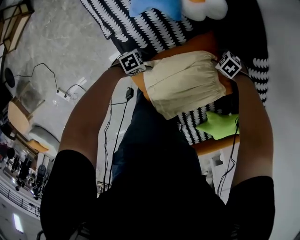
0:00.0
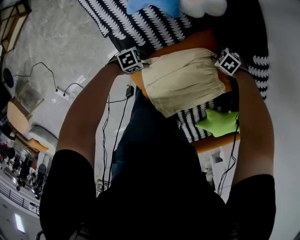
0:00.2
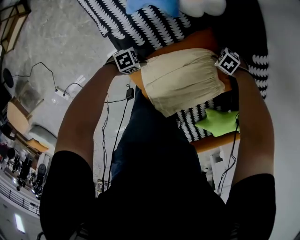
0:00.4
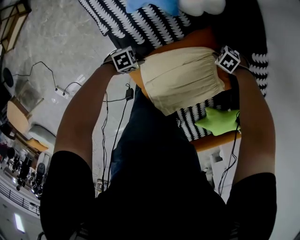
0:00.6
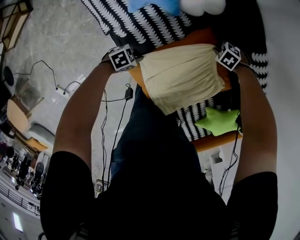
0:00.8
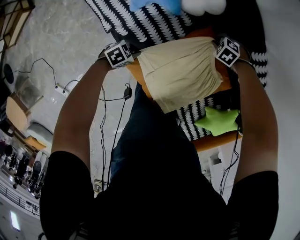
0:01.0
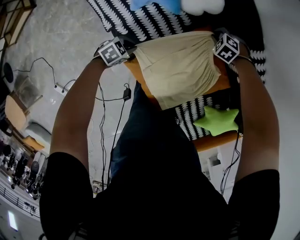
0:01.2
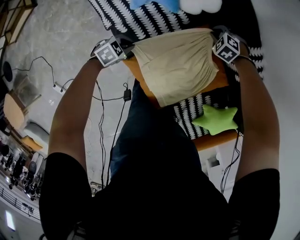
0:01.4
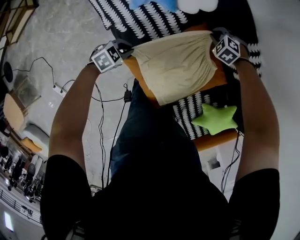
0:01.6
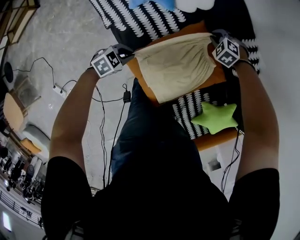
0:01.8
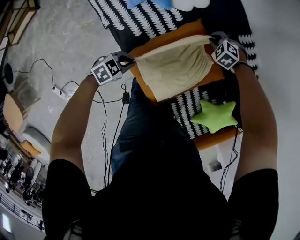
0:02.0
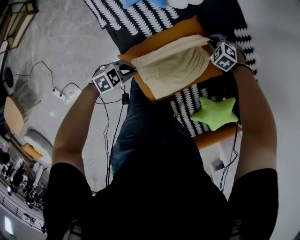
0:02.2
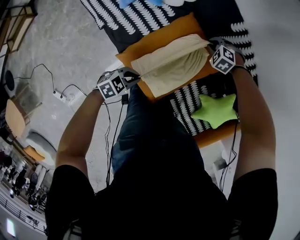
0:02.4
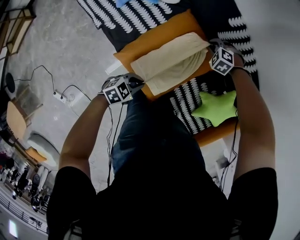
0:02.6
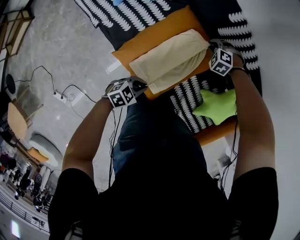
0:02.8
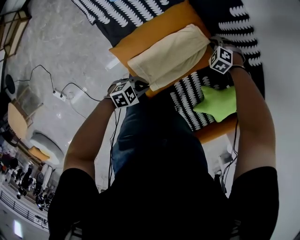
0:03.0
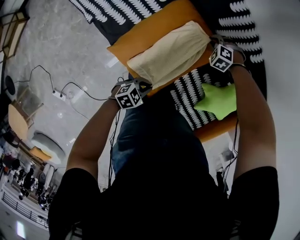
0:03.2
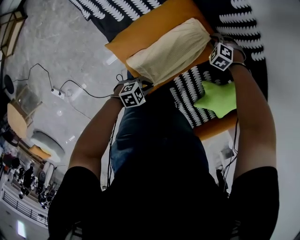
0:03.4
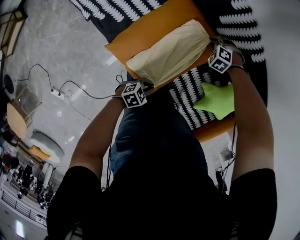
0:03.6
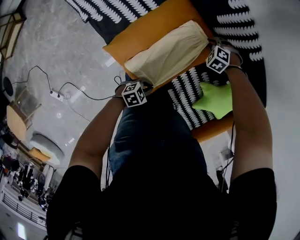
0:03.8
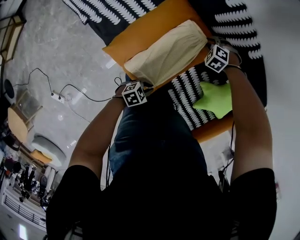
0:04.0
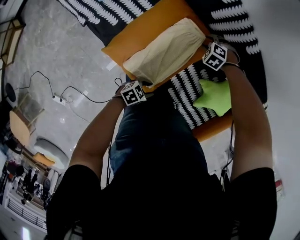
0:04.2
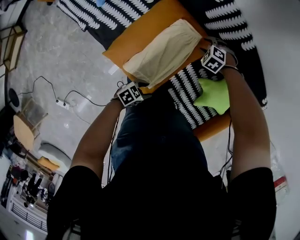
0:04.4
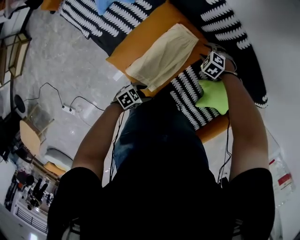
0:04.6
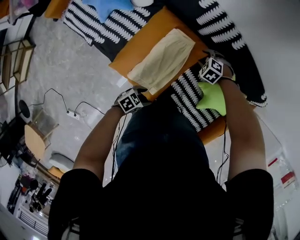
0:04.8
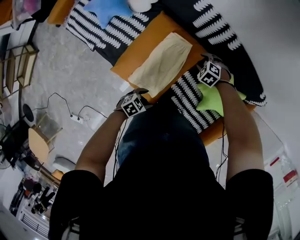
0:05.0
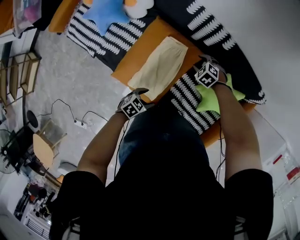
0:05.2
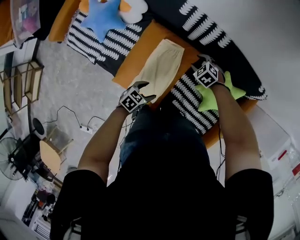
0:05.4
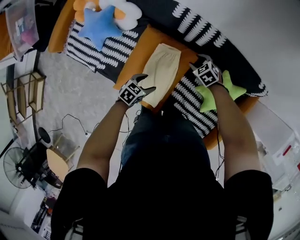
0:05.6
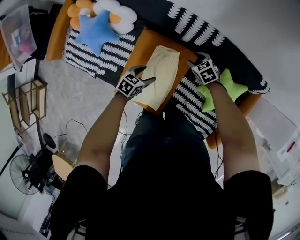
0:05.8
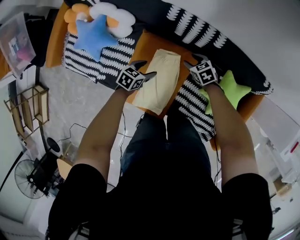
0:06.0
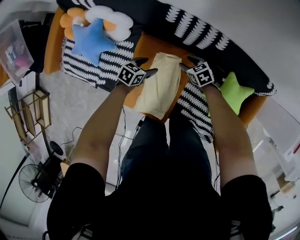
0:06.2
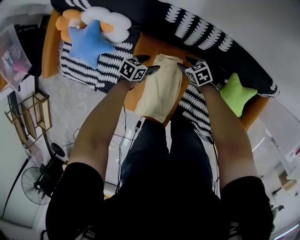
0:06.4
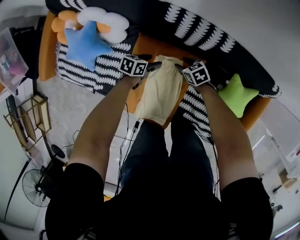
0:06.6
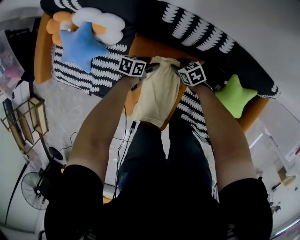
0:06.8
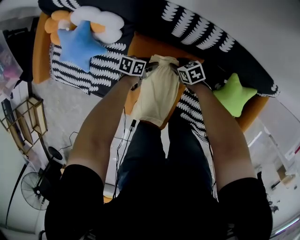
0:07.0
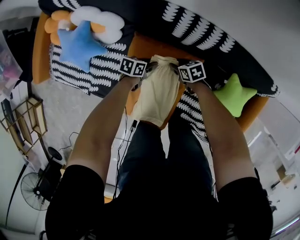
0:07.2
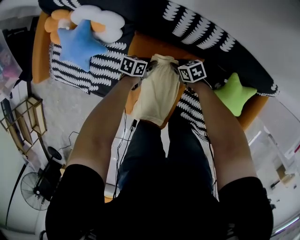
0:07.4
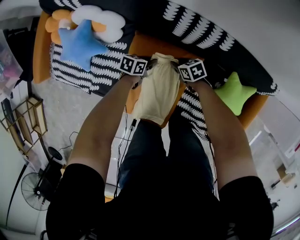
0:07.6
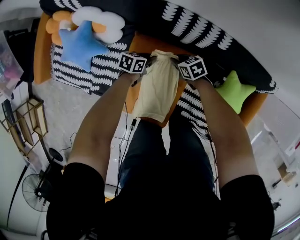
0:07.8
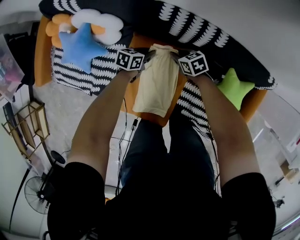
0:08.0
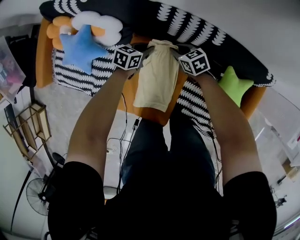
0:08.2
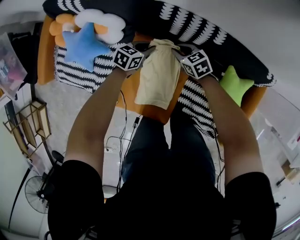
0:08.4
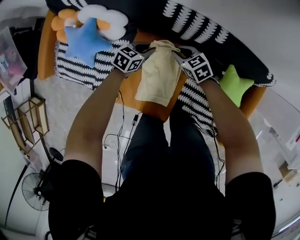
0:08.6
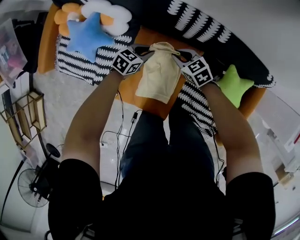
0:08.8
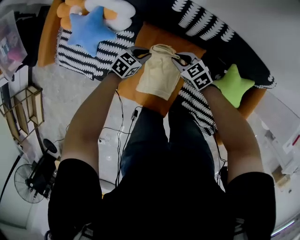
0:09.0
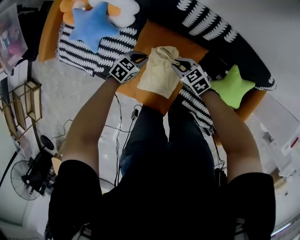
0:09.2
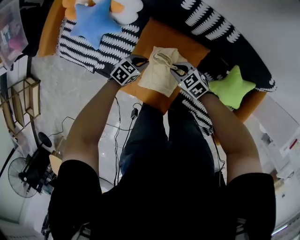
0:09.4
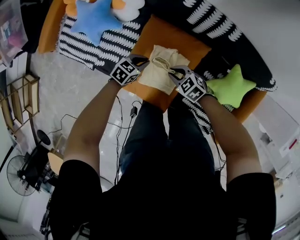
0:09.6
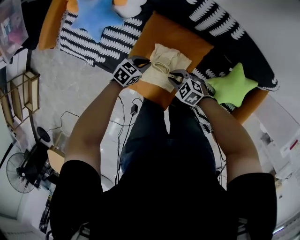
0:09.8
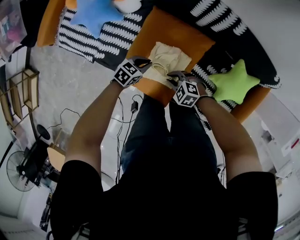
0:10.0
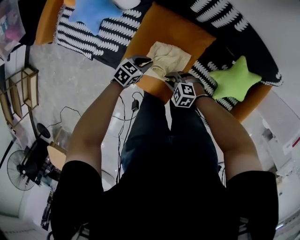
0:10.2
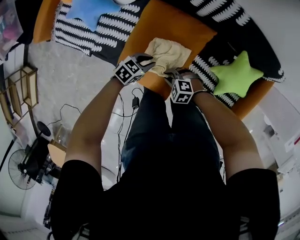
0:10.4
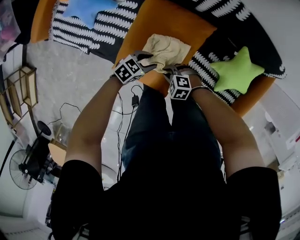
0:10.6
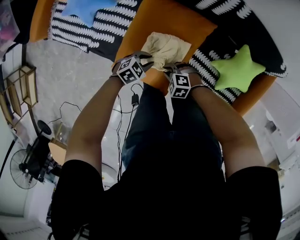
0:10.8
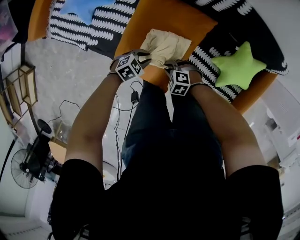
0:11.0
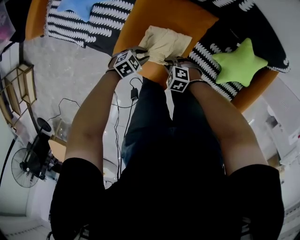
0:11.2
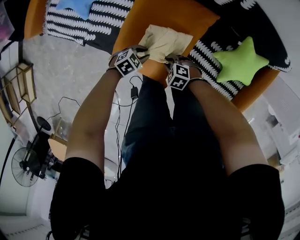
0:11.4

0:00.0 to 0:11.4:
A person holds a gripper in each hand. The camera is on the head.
0:00.0 to 0:01.4: The right gripper shifts by roughly 15 cm, turns by approximately 30 degrees, and closes its fingers. Meanwhile the left gripper changes place by roughly 10 cm, and closes.
0:01.4 to 0:02.8: The left gripper moves some 25 cm. The right gripper changes place by roughly 15 cm.
0:02.8 to 0:04.2: The left gripper changes place by approximately 15 cm, and opens its fingers; the right gripper changes place by roughly 10 cm, and opens up.
0:04.2 to 0:05.6: The left gripper ends up approximately 25 cm from where it was, and opens up. The right gripper moves upward, some 15 cm, and twists some 50 degrees clockwise, seen from behind.
0:05.6 to 0:07.2: The right gripper goes some 15 cm downward, and changes its angle by approximately 40 degrees. The left gripper ends up approximately 25 cm from where it was, swivels approximately 30 degrees, and closes up.
0:07.2 to 0:08.6: Both grippers travel together upward, some 15 cm. The right gripper changes its angle by approximately 30 degrees, and closes its fingers. Meanwhile the left gripper rotates approximately 30 degrees.
0:08.6 to 0:10.0: The right gripper moves about 25 cm, and rotates roughly 40 degrees. The left gripper shifts by approximately 20 cm.
0:10.0 to 0:11.4: The left gripper ends up some 10 cm from where it was, and changes its angle by about 20 degrees, while the right gripper travels downward by roughly 10 cm.

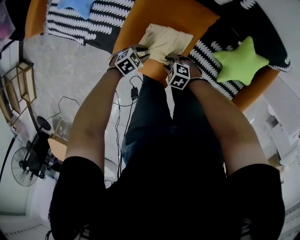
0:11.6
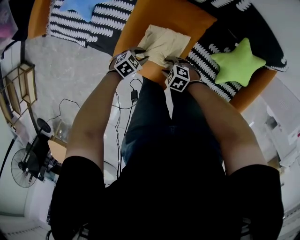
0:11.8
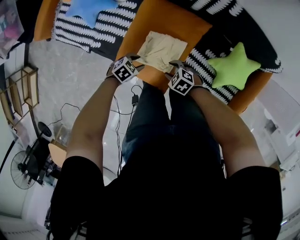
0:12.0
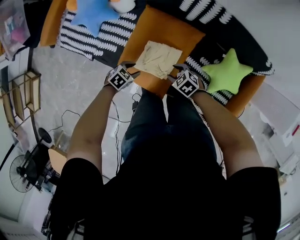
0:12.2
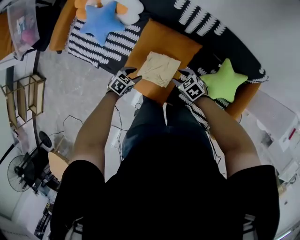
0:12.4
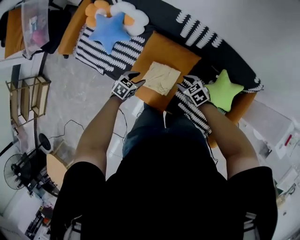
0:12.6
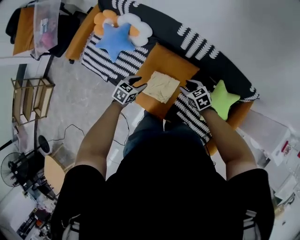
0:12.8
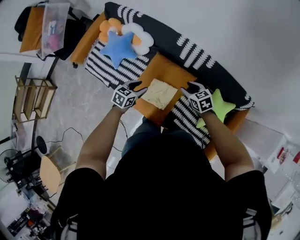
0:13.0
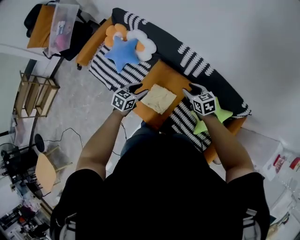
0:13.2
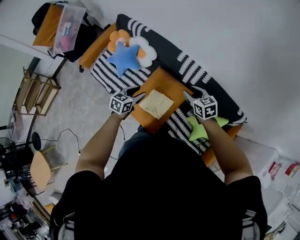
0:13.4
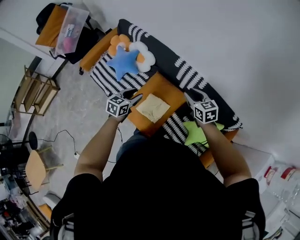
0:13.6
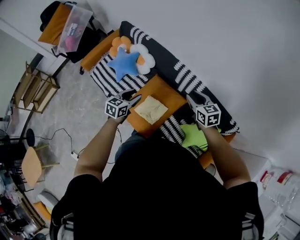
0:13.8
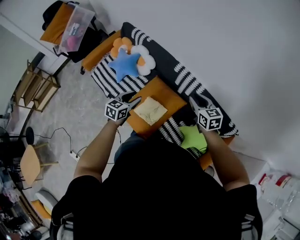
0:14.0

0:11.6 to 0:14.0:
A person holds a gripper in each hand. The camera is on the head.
0:11.6 to 0:12.8: The two grippers go approximately 30 cm upward. The right gripper changes its angle by roughly 40 degrees, while the left gripper swivels approximately 30 degrees.
0:12.8 to 0:14.0: The left gripper shifts about 20 cm upward, and turns by roughly 30 degrees. The right gripper shifts roughly 25 cm upward and to the right, and turns by approximately 20 degrees.

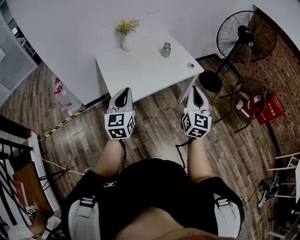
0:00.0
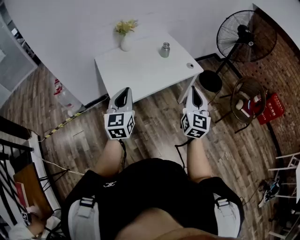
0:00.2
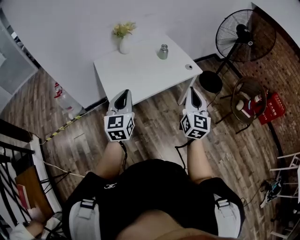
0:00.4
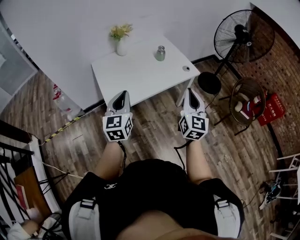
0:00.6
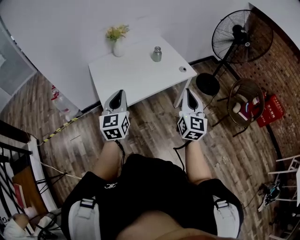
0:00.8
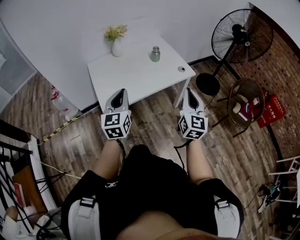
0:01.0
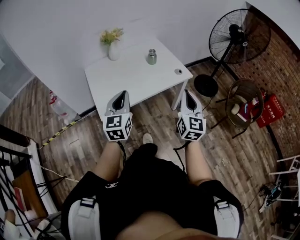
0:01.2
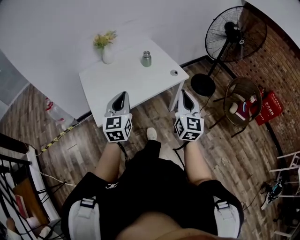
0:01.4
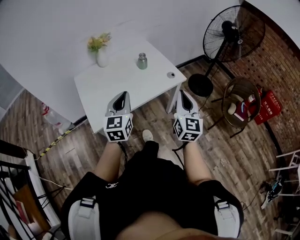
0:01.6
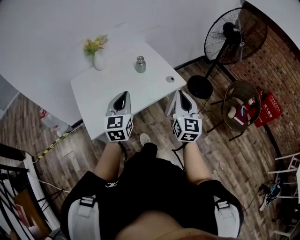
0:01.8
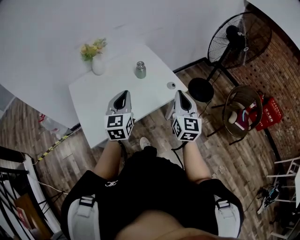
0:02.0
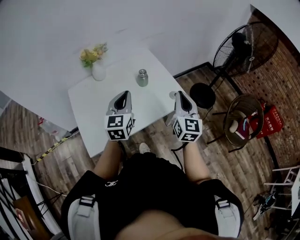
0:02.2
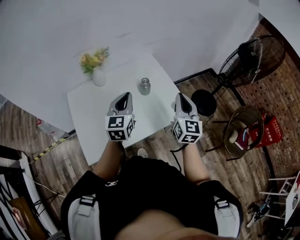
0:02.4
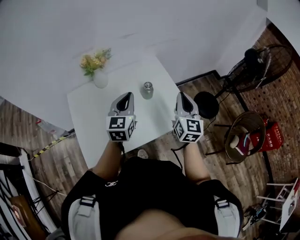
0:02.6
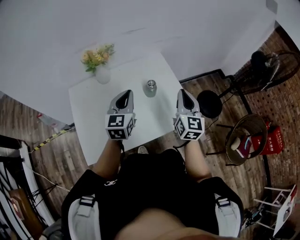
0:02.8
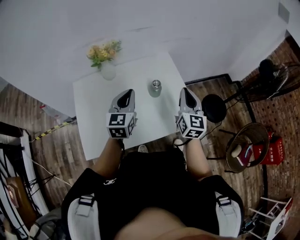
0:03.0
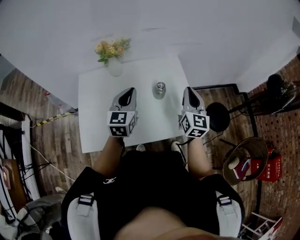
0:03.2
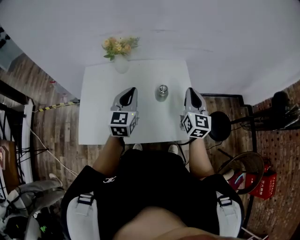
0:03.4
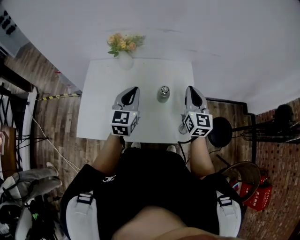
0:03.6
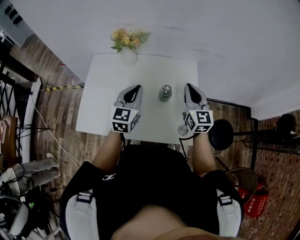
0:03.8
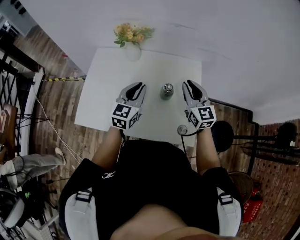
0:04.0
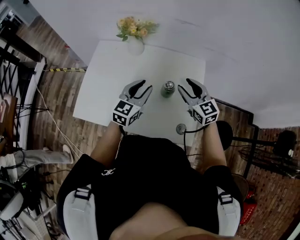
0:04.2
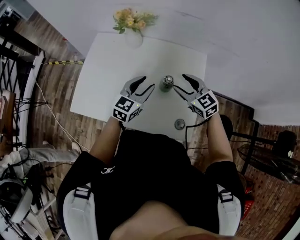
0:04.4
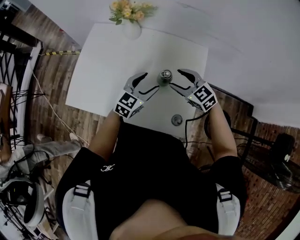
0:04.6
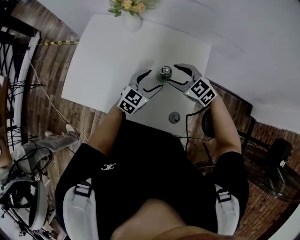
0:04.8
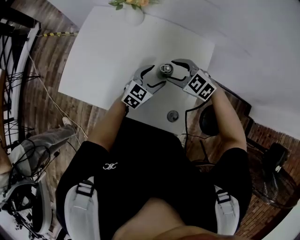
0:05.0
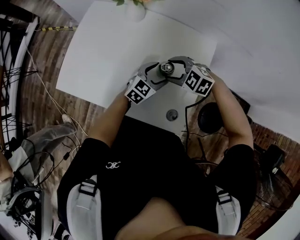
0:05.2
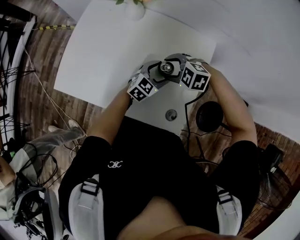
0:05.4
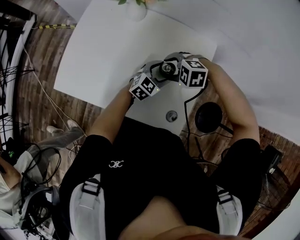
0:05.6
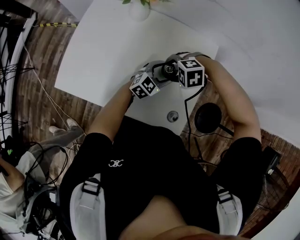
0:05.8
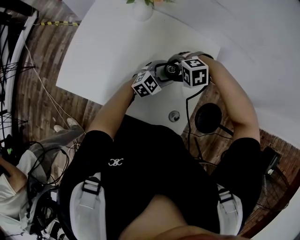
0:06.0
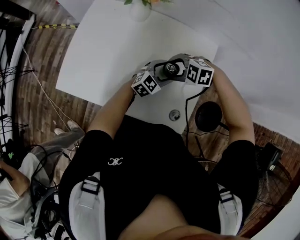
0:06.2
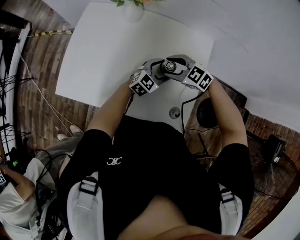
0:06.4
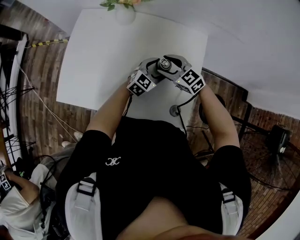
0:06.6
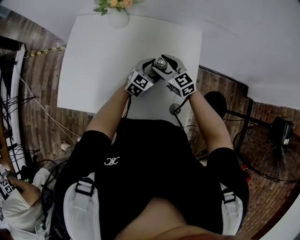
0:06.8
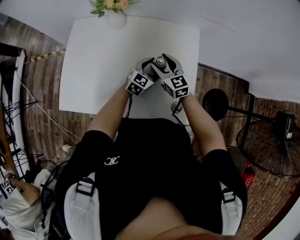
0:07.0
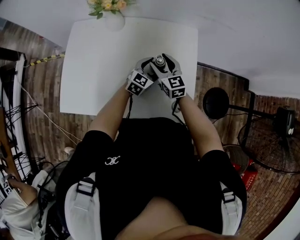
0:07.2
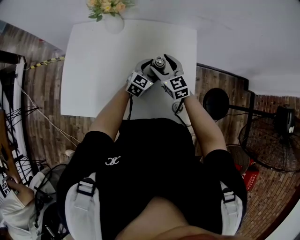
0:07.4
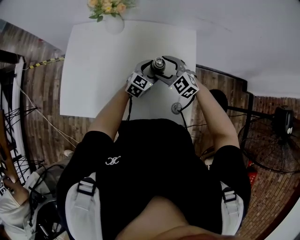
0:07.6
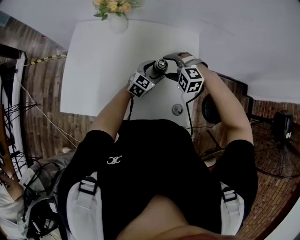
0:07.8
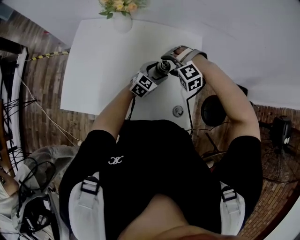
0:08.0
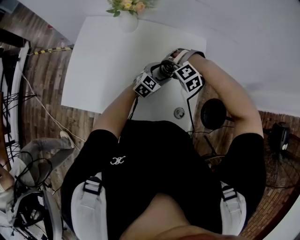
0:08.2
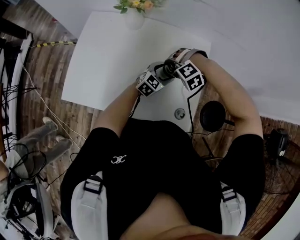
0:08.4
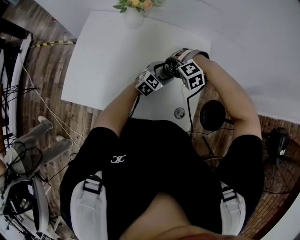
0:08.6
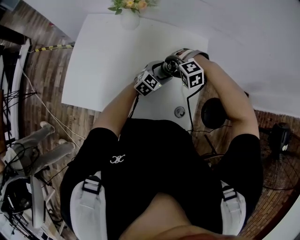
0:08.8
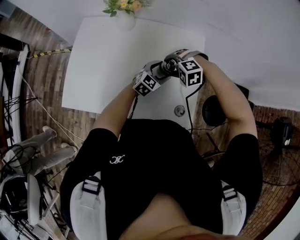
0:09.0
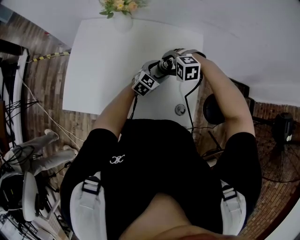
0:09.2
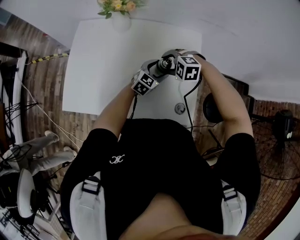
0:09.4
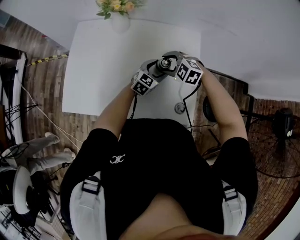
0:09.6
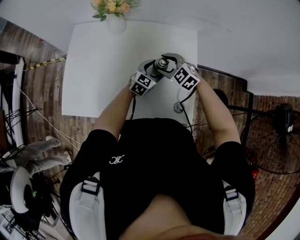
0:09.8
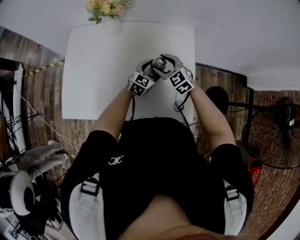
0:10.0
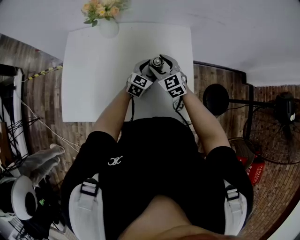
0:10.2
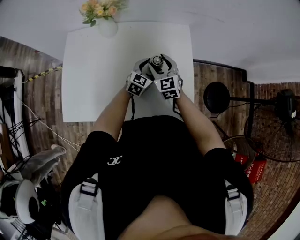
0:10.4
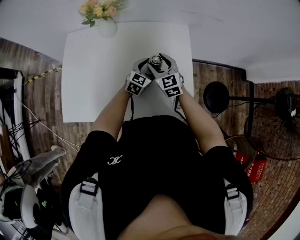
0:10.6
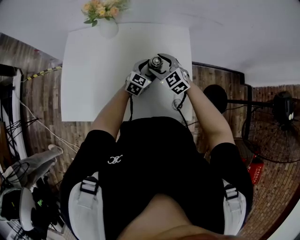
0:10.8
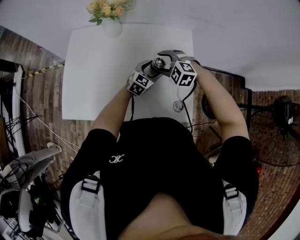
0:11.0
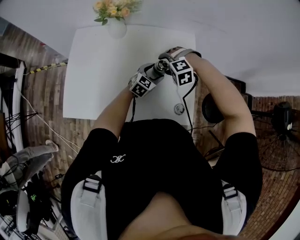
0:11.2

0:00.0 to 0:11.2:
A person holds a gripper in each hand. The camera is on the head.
0:00.0 to 0:01.6: The right gripper is displaced forward and to the right by about 15 cm; the left gripper moves to the right and forward, roughly 20 cm.
0:01.6 to 0:03.2: The grippers both shift forward by approximately 35 cm. The right gripper swivels about 20 degrees.
0:03.2 to 0:04.8: The two grippers go roughly 15 cm downward. The left gripper opens up. Meanwhile the right gripper tilts its fingers approximately 30 degrees downward, and opens its fingers.
0:04.8 to 0:06.4: The left gripper travels downward by roughly 5 cm; the right gripper ends up approximately 5 cm from where it was.
0:06.4 to 0:08.0: The right gripper twists about 50 degrees counterclockwise, seen from behind.
0:08.0 to 0:09.6: The right gripper rotates around the line of its fingers by some 40 degrees, clockwise from behind.
0:09.6 to 0:11.2: The right gripper rotates some 40 degrees.
